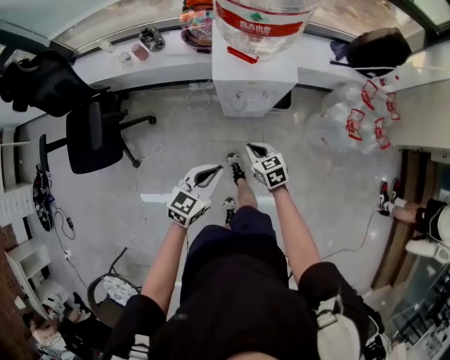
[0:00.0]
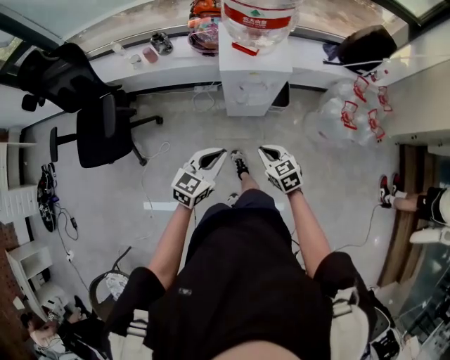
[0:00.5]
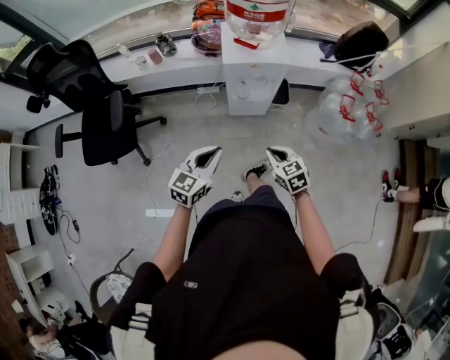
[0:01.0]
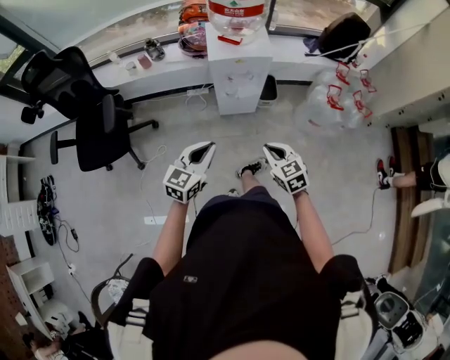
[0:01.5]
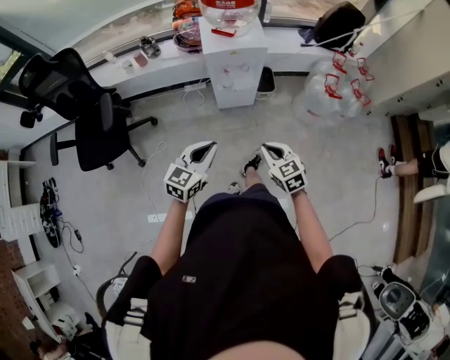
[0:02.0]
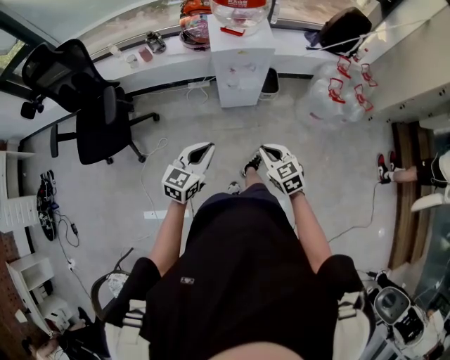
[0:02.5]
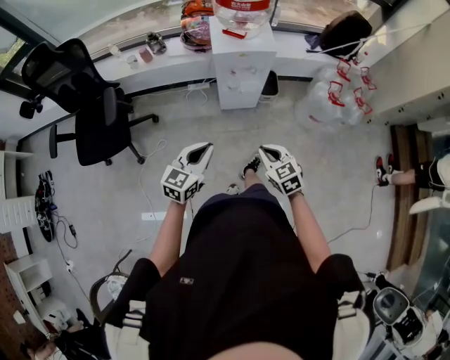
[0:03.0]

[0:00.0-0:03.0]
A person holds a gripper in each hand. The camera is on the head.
0:00.0 to 0:01.5: The left gripper heads backward and upward, covering roughly 15 cm. Meanwhile the right gripper heads backward and upward, covering about 25 cm.
0:01.5 to 0:03.0: The grippers make only small movements.

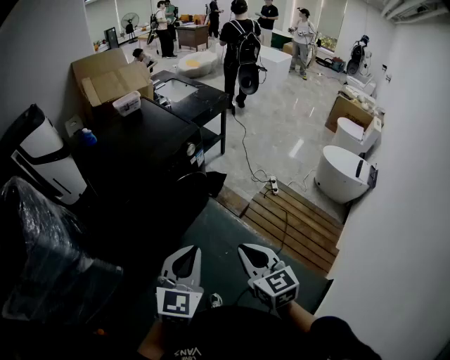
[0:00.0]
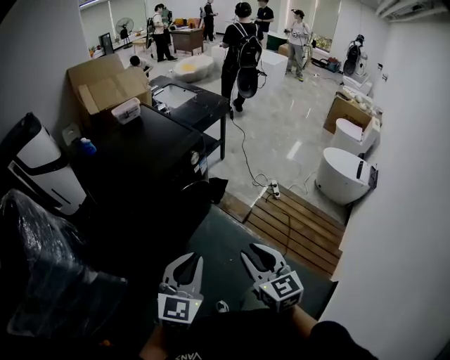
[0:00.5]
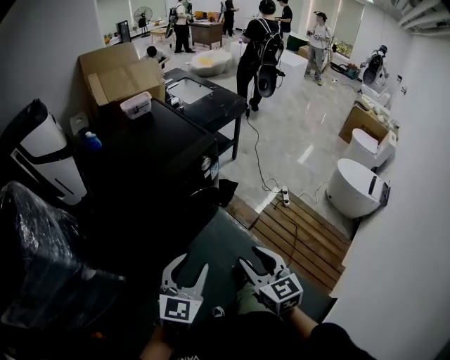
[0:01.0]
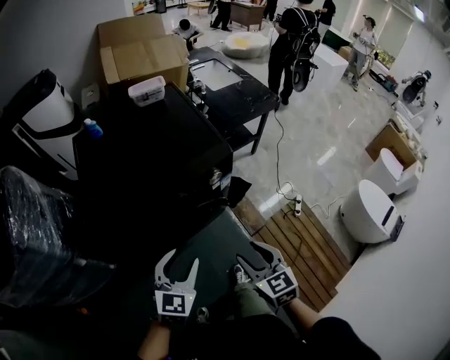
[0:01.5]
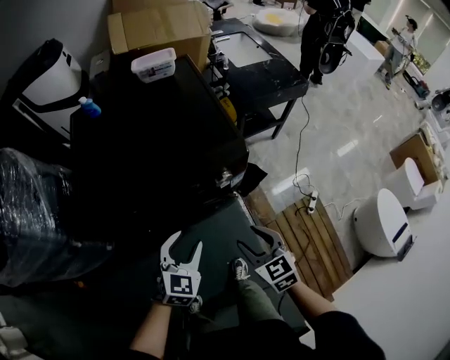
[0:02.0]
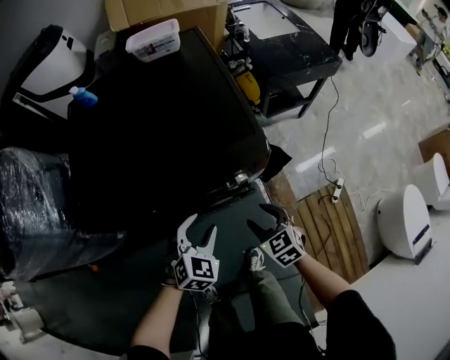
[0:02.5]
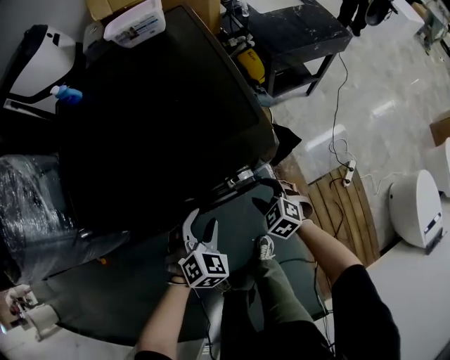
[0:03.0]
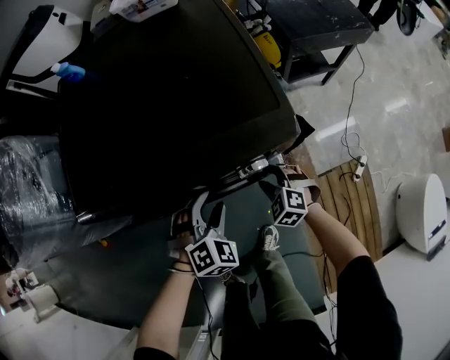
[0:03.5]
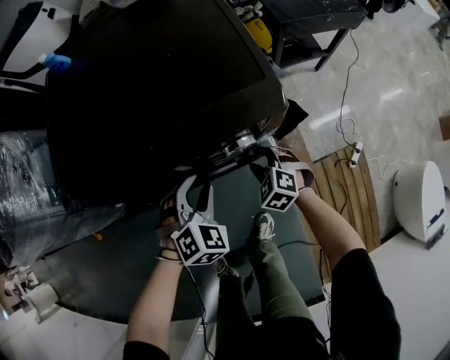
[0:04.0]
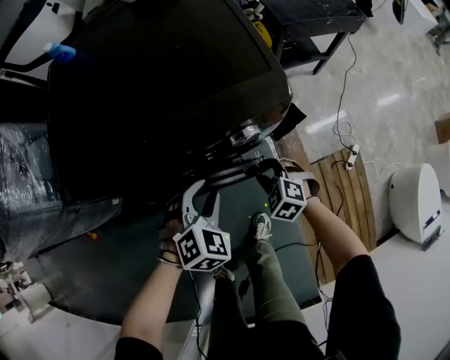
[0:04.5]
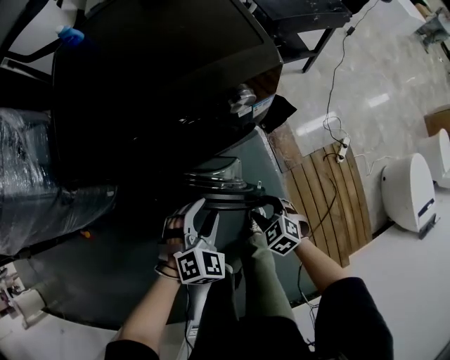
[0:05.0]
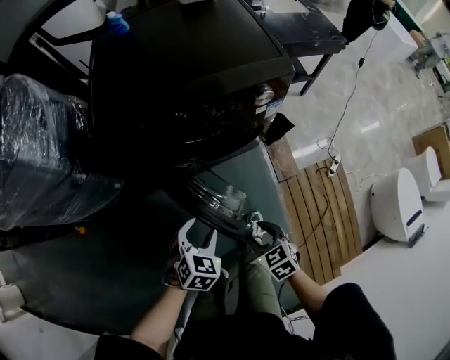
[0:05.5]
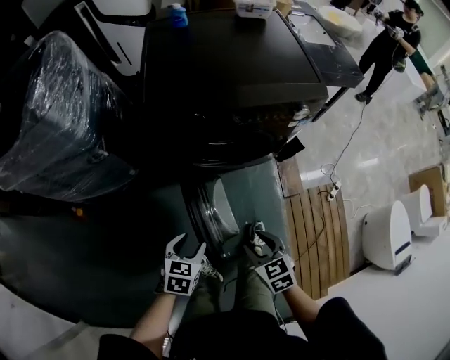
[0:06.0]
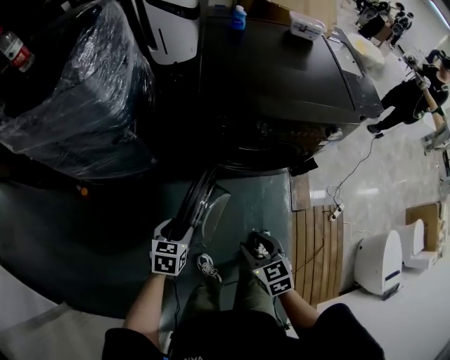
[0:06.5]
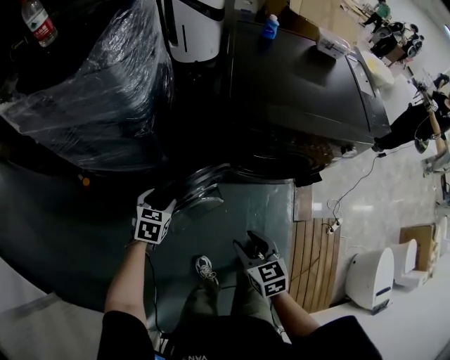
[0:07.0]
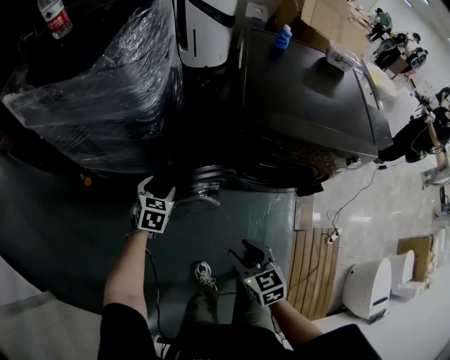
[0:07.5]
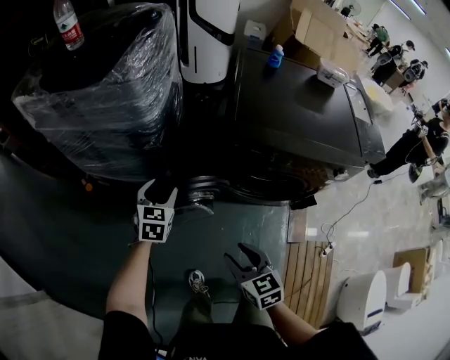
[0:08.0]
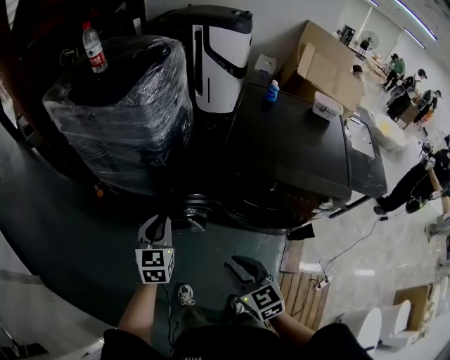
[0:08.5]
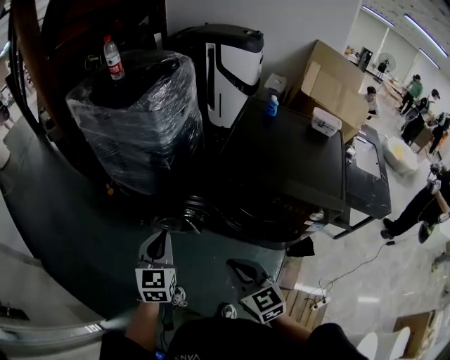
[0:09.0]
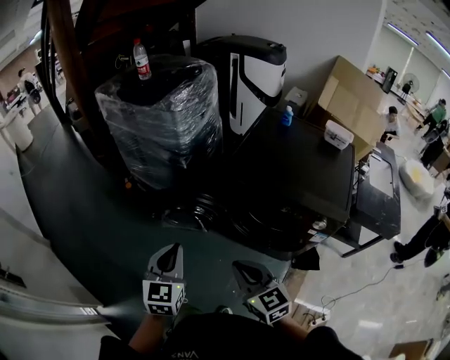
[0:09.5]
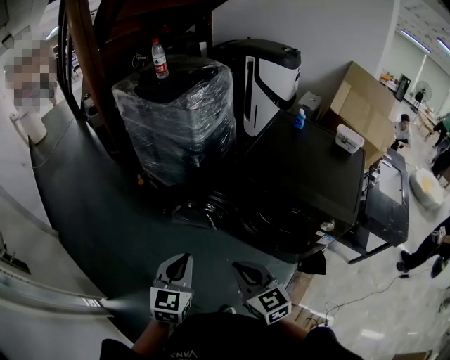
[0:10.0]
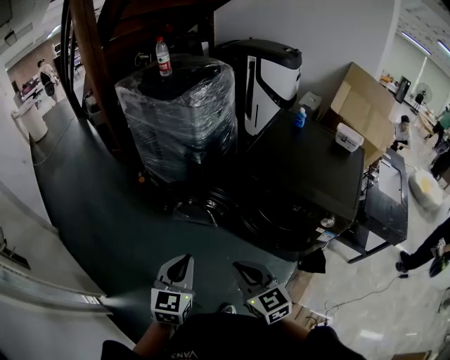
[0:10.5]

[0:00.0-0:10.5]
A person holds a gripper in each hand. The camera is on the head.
0:00.0 to 0:02.0: The left gripper shifts by approximately 40 cm, changes its angle by roughly 30 degrees, and opens its fingers. Meanwhile the right gripper shifts by roughly 40 cm, rotates approximately 40 degrees, and opens up.
0:02.0 to 0:04.0: The left gripper heads downward and forward, covering about 15 cm, and turns by about 30 degrees. Meanwhile the right gripper is displaced downward and forward by approximately 30 cm, and rotates approximately 40 degrees.
0:04.0 to 0:06.5: The two grippers travel together, to the left and backward, approximately 50 cm. The right gripper moves upward, approximately 15 cm, and rotates about 30 degrees. The left gripper twists some 60 degrees counterclockwise, seen from behind.
0:06.5 to 0:08.5: The two grippers go approximately 20 cm upward. The left gripper swivels some 40 degrees, and closes its fingers; the right gripper rotates some 30 degrees, and closes up.
0:08.5 to 0:10.5: The right gripper heads backward, covering about 15 cm, turns by roughly 20 degrees, and closes up. Meanwhile the left gripper travels backward by some 30 cm.

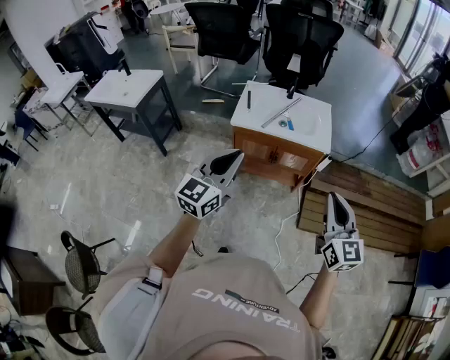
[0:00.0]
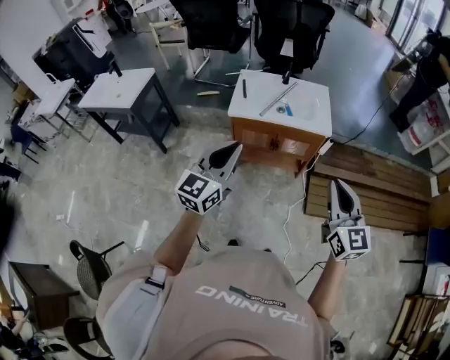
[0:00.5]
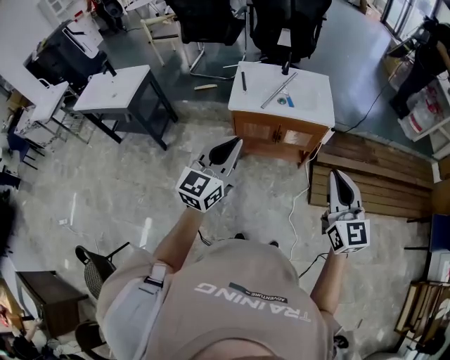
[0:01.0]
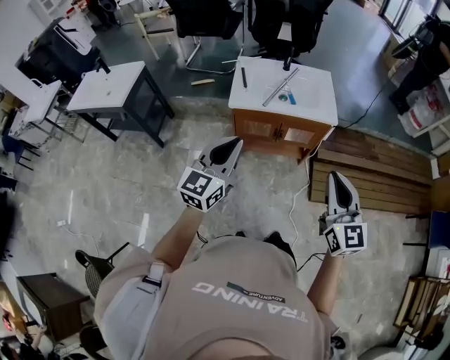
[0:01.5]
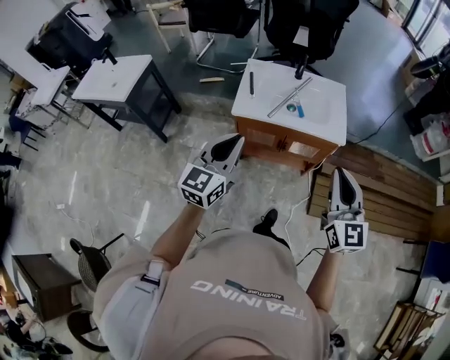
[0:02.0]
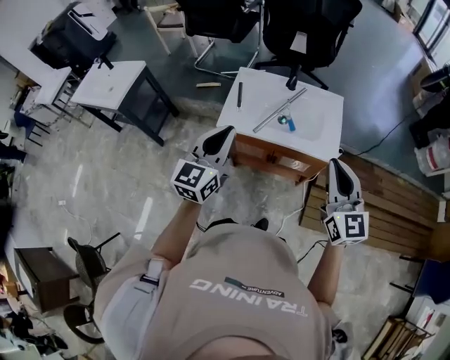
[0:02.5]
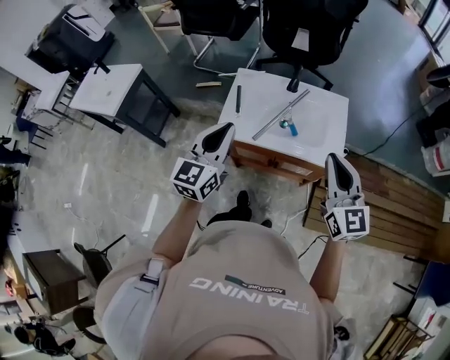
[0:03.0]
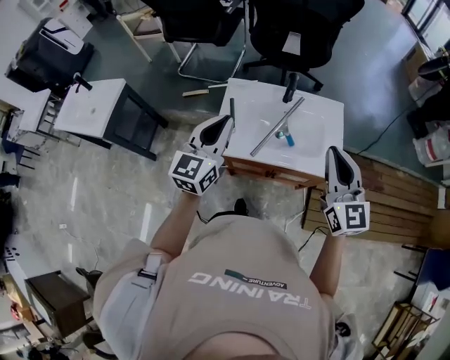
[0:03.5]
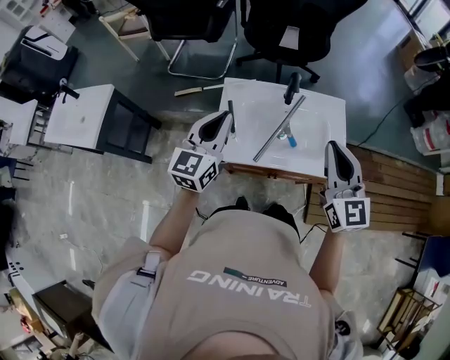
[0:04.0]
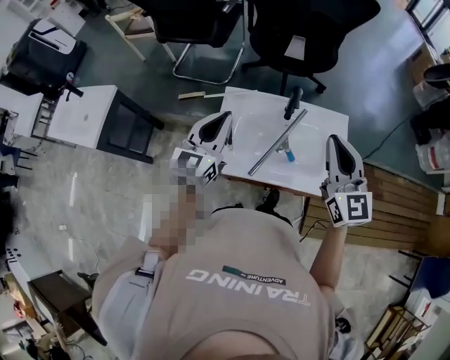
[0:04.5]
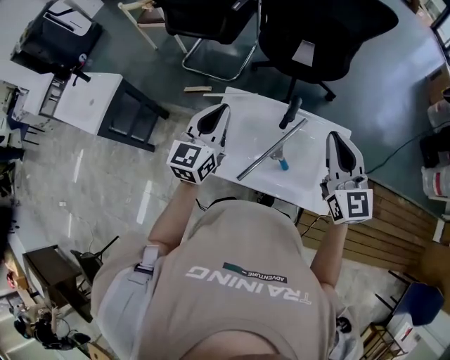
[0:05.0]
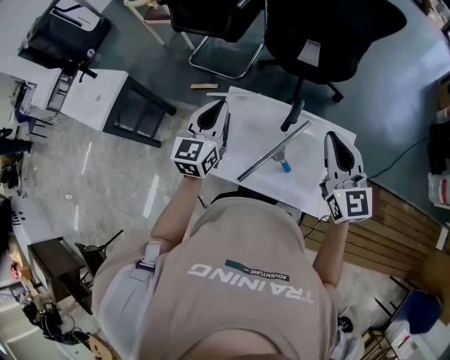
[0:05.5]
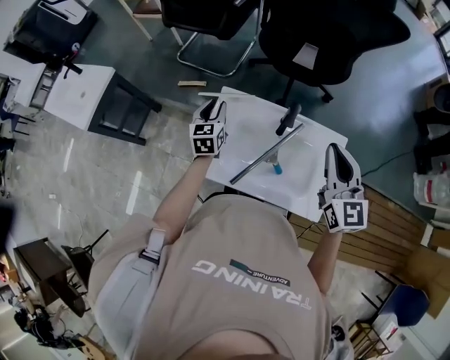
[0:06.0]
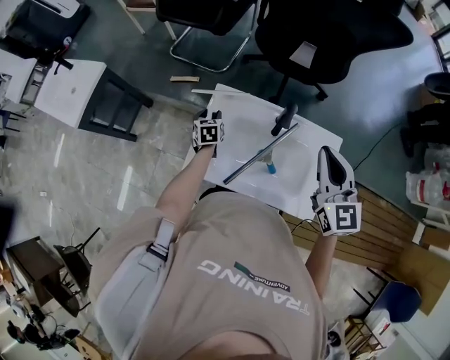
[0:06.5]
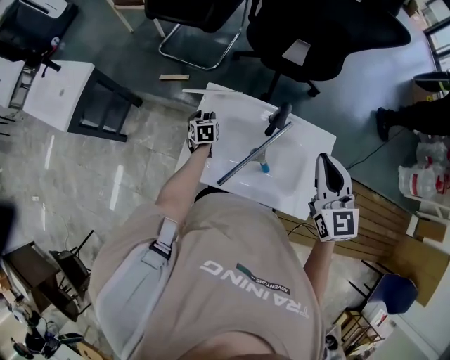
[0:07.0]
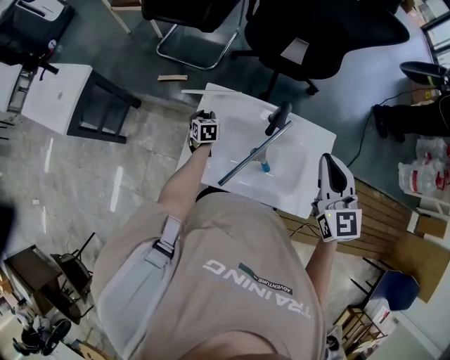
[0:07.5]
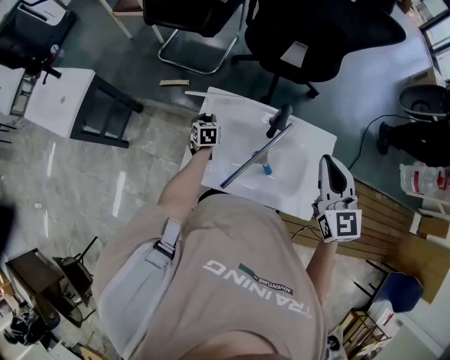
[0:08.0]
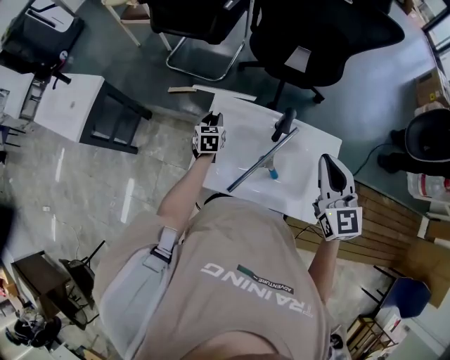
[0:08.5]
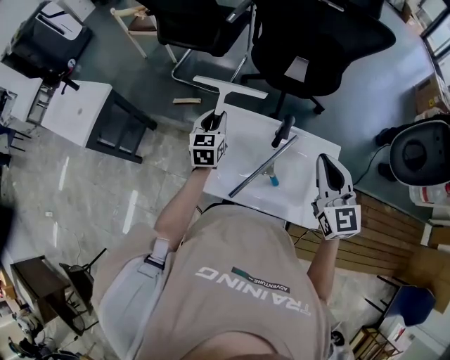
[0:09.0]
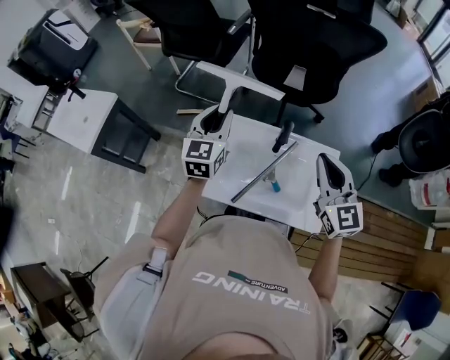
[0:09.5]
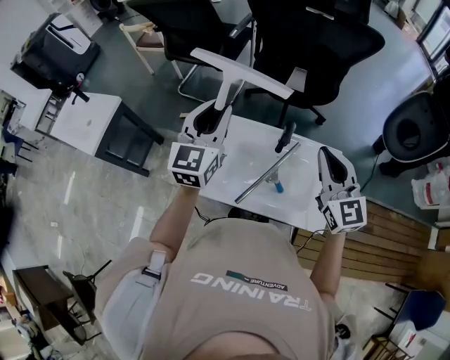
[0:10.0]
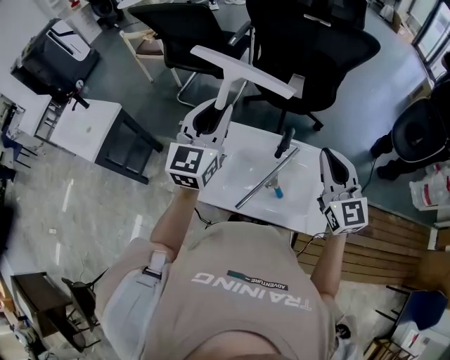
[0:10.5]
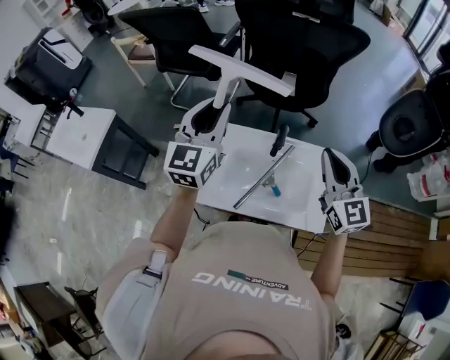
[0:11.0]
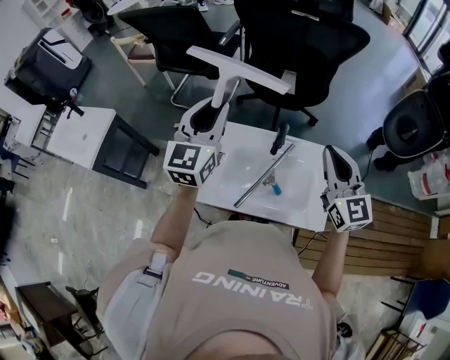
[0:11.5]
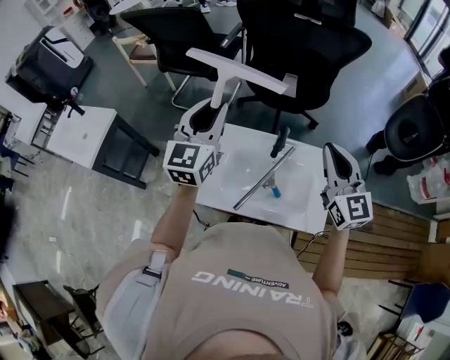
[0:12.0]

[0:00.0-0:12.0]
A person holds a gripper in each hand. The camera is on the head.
0:00.0 to 0:02.0: The grippers both shift forward by approximately 15 cm.
0:02.0 to 0:04.0: Both grippers move forward, roughly 35 cm.
0:04.0 to 0:06.0: The left gripper heads forward and downward, covering approximately 25 cm, swivels some 30 degrees, and opens its fingers; the right gripper heads forward and to the right, covering roughly 20 cm.
0:06.0 to 0:08.0: The left gripper shifts roughly 20 cm downward, and turns by roughly 20 degrees.
0:08.0 to 0:10.0: The left gripper goes some 40 cm upward, and points its fingers some 50 degrees further upward. Meanwhile the right gripper heads upward, covering roughly 5 cm.
0:10.0 to 0:12.0: The grippers stay close to where they were, moving slightly.

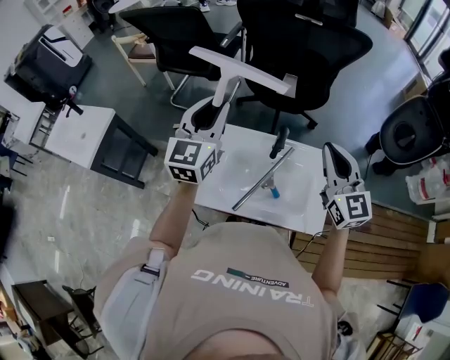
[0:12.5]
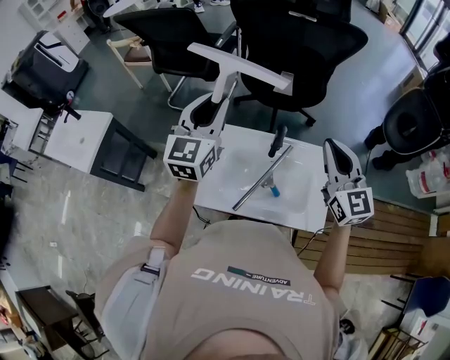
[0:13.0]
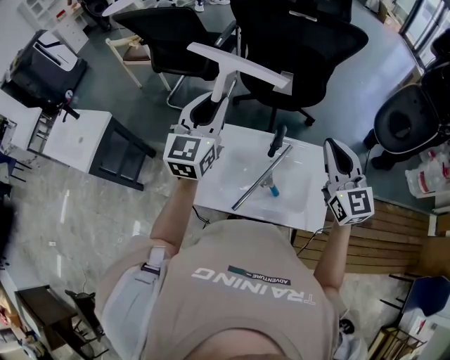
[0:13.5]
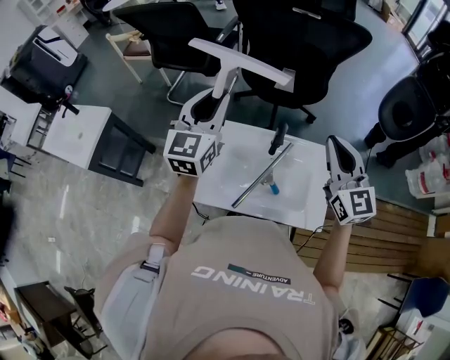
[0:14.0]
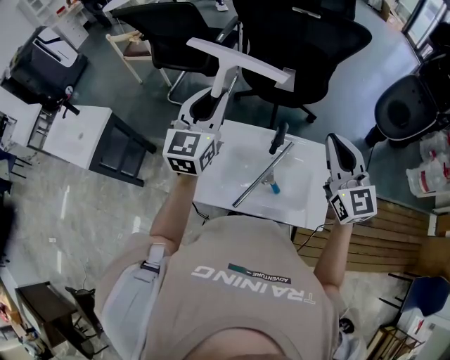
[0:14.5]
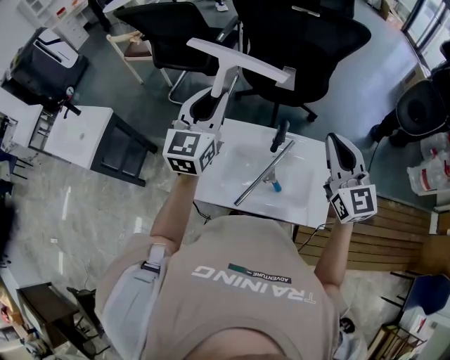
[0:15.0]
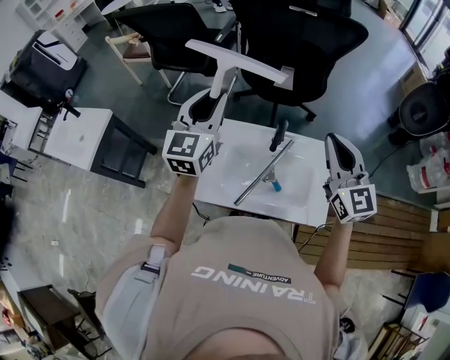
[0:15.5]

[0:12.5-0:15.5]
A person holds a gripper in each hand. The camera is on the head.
0:12.5 to 0:14.0: Both grippers stay put.
0:14.0 to 0:15.5: Neither gripper changes place.
